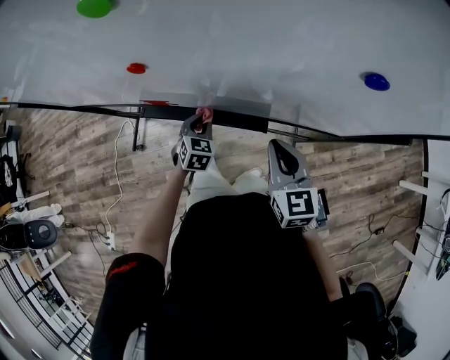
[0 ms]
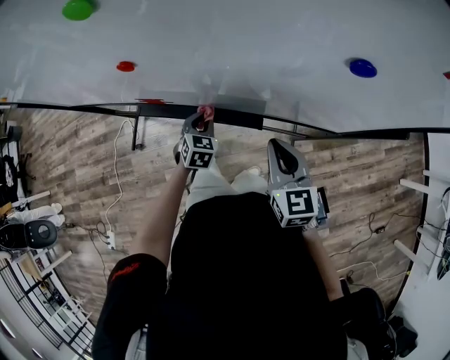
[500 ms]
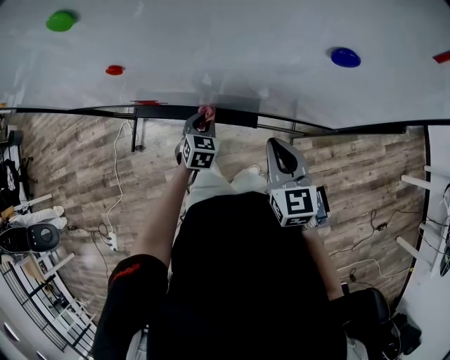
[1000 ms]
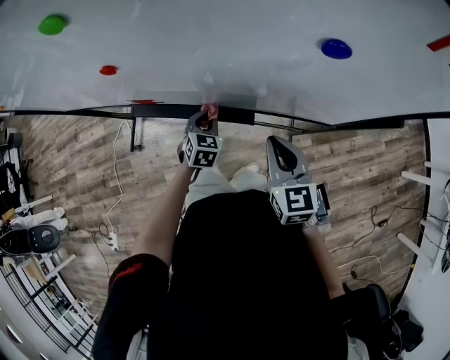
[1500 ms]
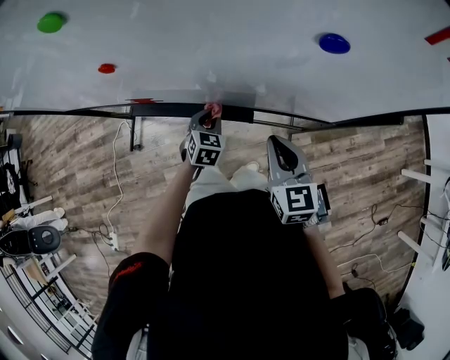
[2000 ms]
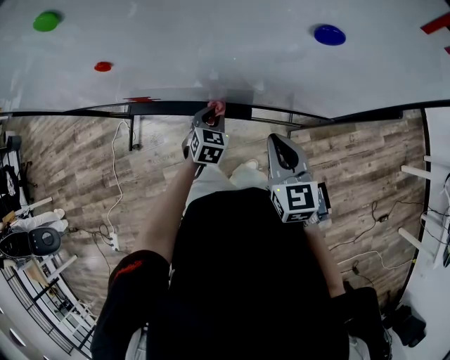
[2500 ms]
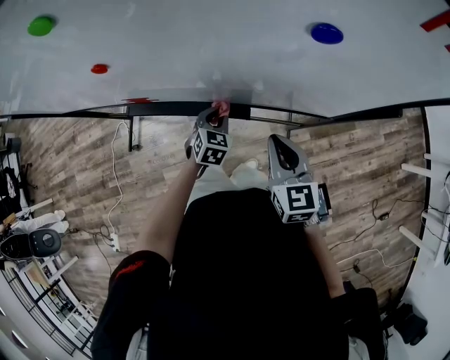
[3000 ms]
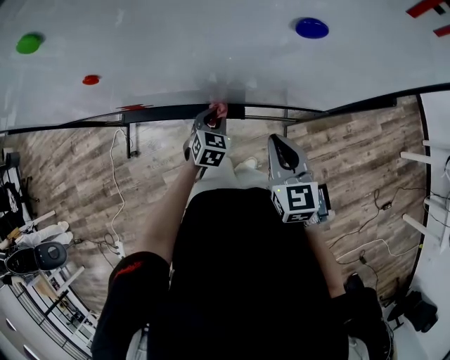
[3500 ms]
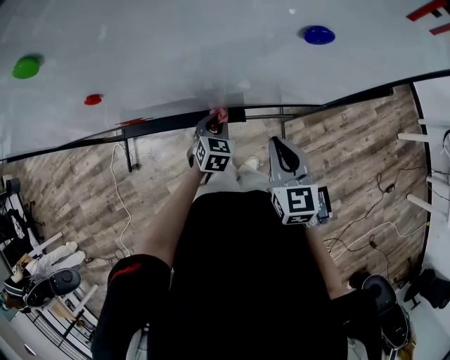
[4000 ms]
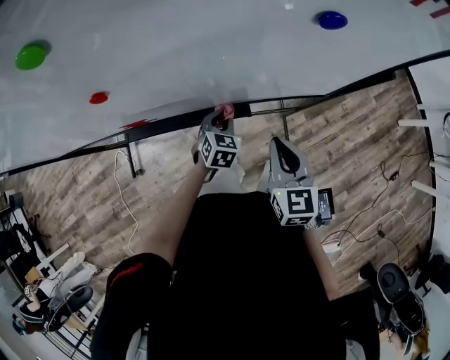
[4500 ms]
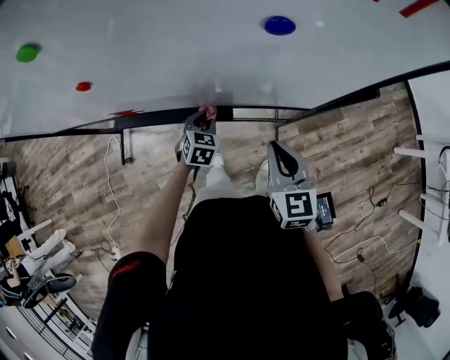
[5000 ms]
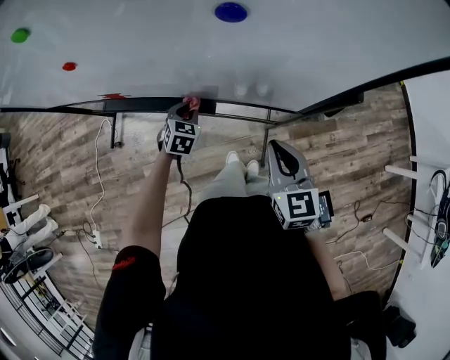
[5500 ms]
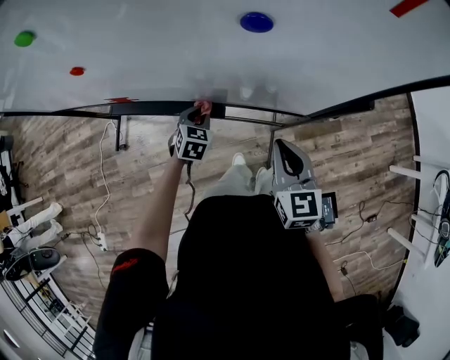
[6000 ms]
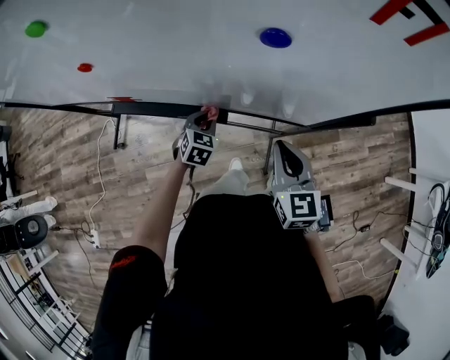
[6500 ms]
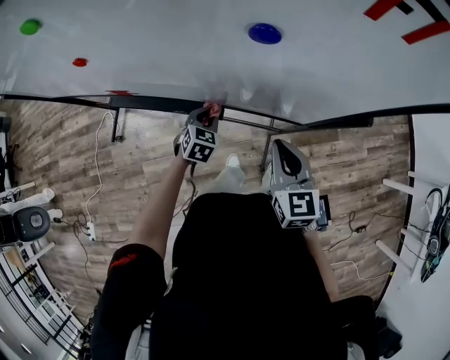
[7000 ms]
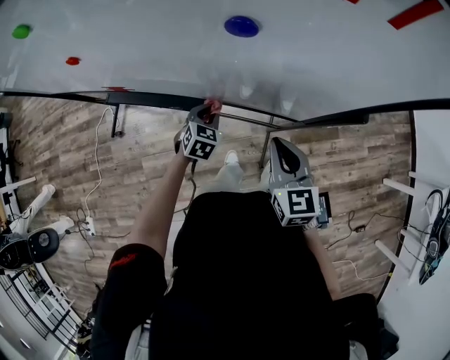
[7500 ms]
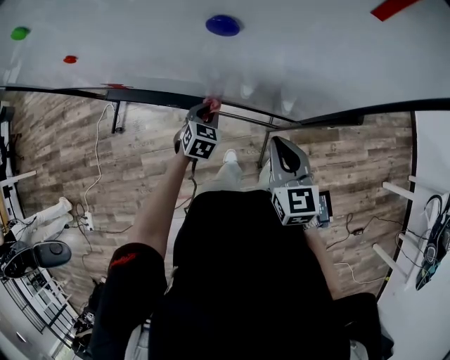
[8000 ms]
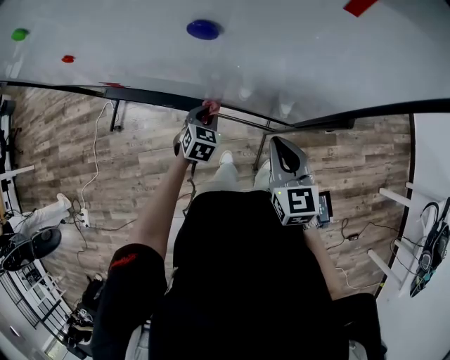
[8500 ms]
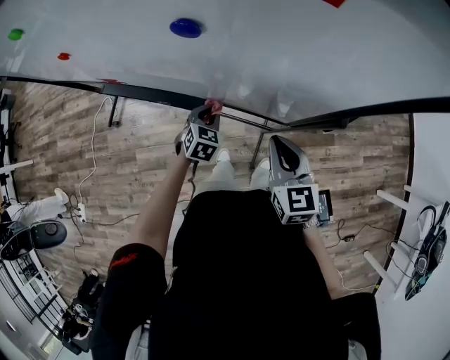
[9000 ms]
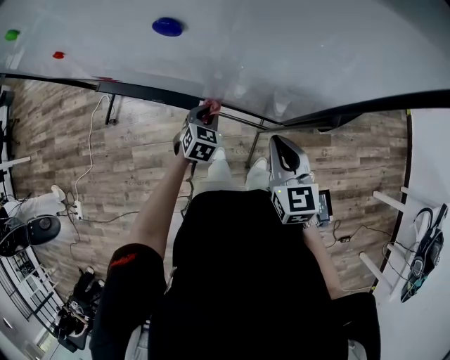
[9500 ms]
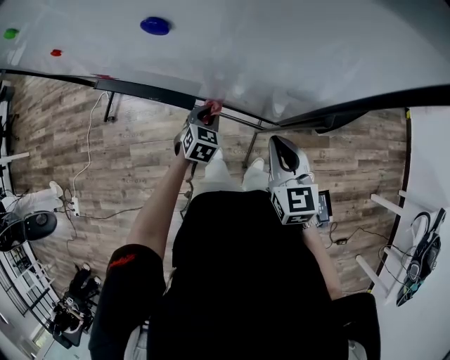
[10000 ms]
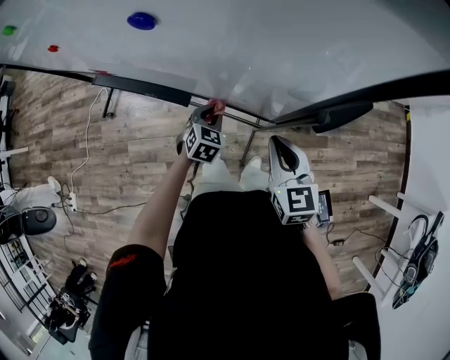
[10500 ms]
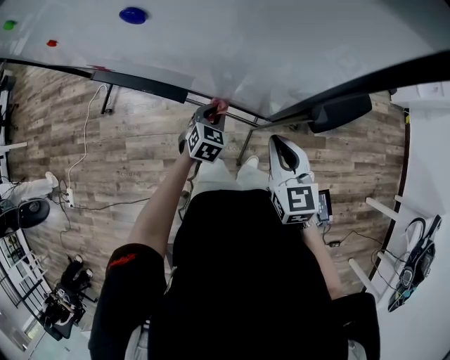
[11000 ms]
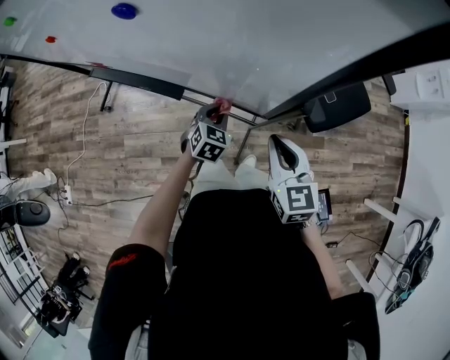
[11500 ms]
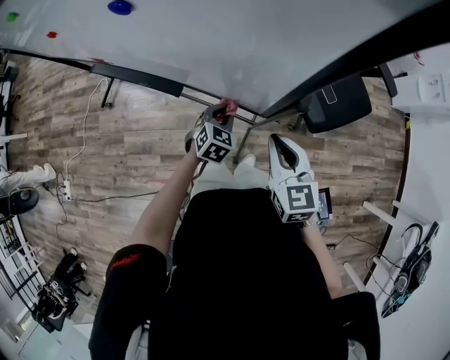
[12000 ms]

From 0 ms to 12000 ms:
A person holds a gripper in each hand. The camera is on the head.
From 0 ms to 2000 ms: The left gripper moves to the right, some 10 cm. Meanwhile the right gripper changes place by some 5 cm.
From 2000 ms to 4000 ms: There are only small adjustments of the grippers.
From 4000 ms to 6000 ms: The right gripper moves to the right, roughly 10 cm.
From 6000 ms to 8000 ms: The left gripper moves to the right, approximately 5 cm.
From 8000 ms to 10000 ms: The grippers both shift to the right by some 10 cm.
From 10000 ms to 12000 ms: The left gripper moves to the right, some 10 cm. Meanwhile the right gripper shifts roughly 5 cm to the right.

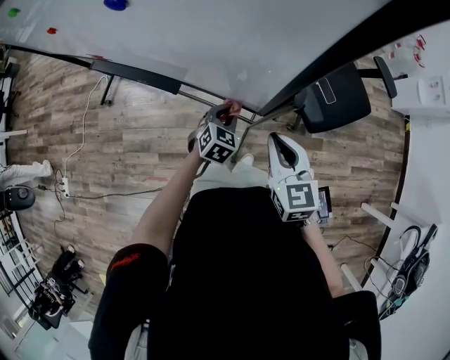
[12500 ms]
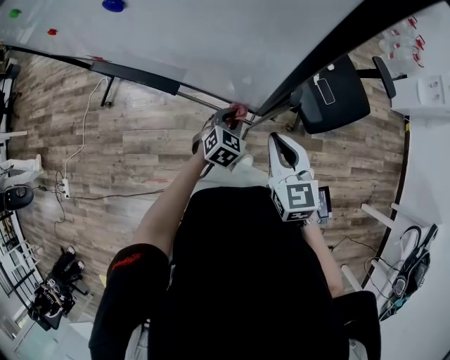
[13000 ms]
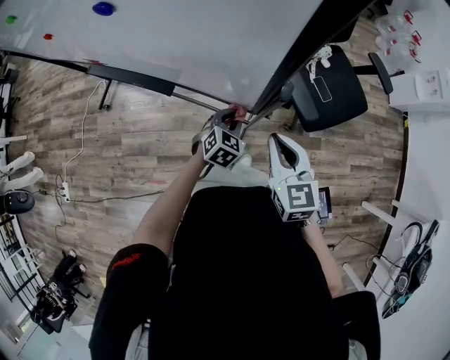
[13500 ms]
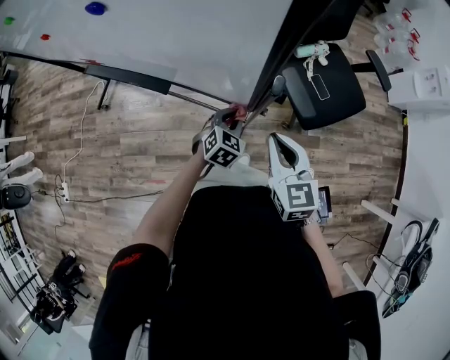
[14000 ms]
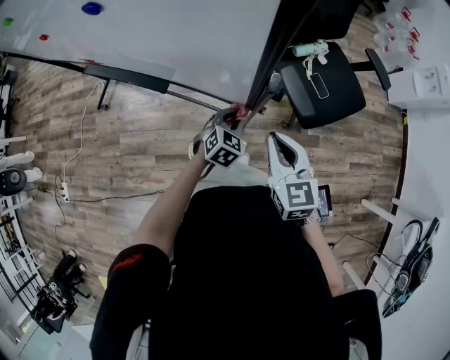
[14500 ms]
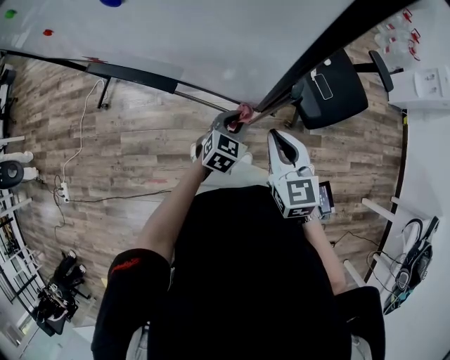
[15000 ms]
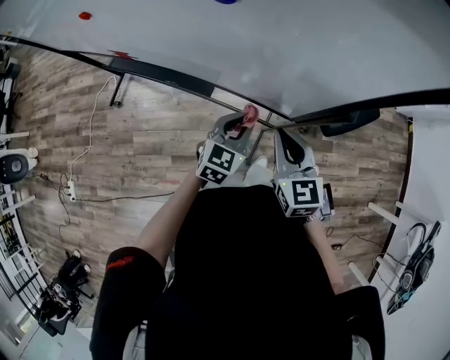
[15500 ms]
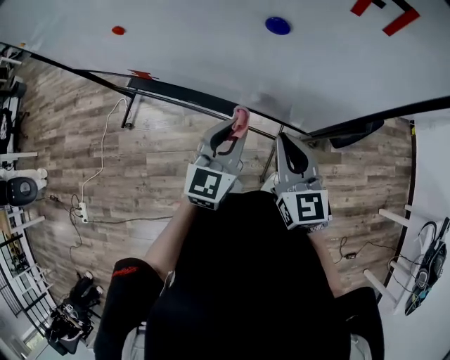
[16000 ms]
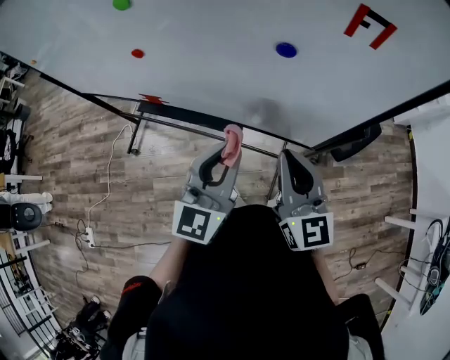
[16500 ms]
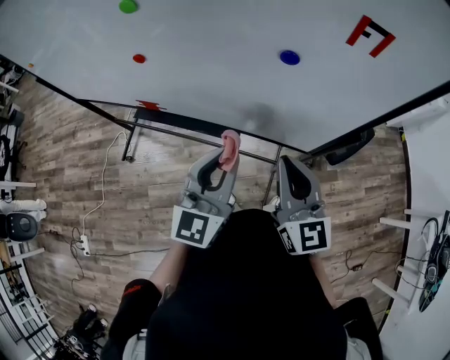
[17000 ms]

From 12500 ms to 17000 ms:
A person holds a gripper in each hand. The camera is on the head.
From 12500 ms to 14500 ms: The left gripper travels to the right by some 5 cm.
From 14500 ms to 17000 ms: The right gripper shifts about 30 cm to the left and upward, and swivels about 20 degrees; the left gripper shifts roughly 40 cm upward and to the left, and tilts its fingers some 50 degrees upward.

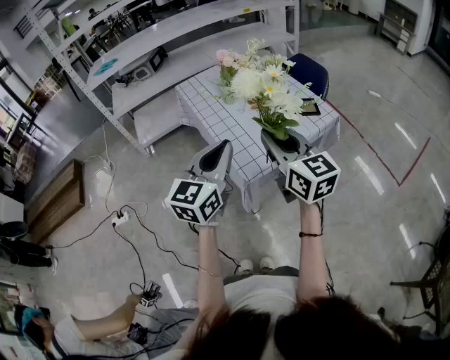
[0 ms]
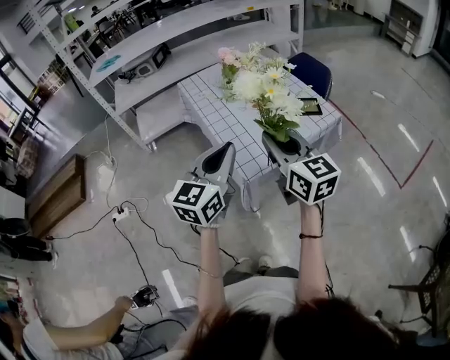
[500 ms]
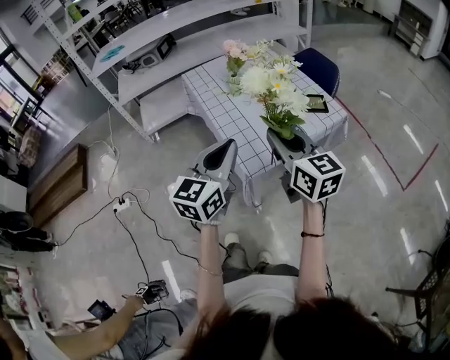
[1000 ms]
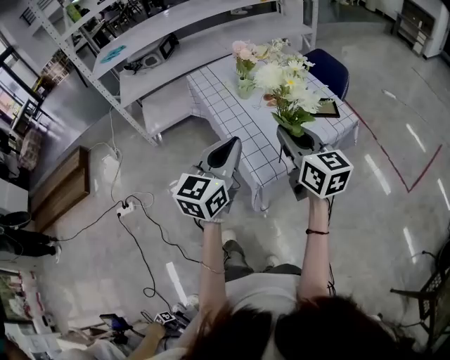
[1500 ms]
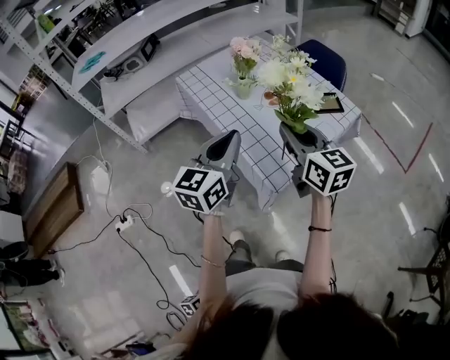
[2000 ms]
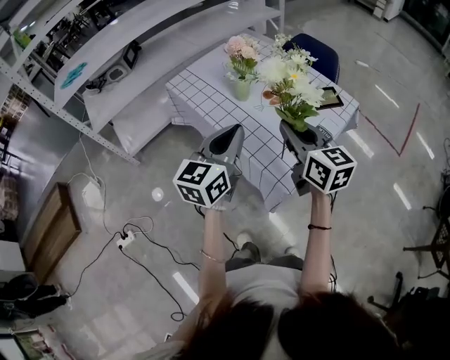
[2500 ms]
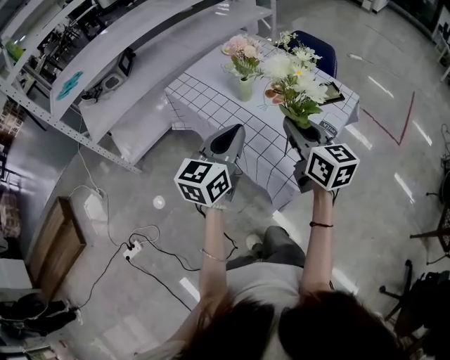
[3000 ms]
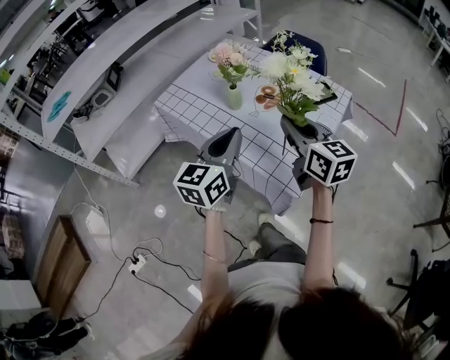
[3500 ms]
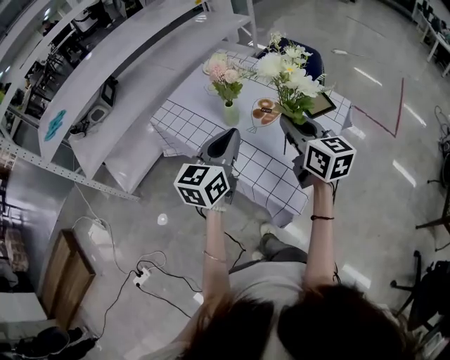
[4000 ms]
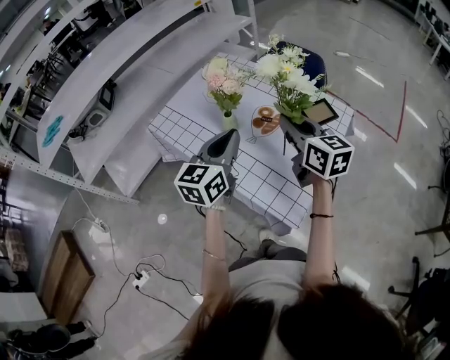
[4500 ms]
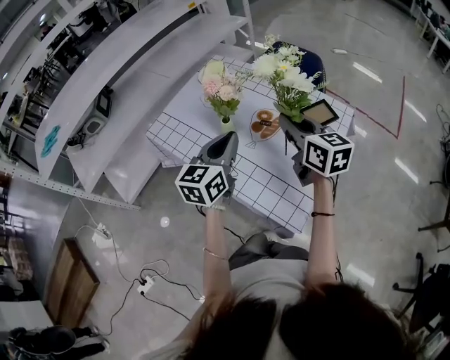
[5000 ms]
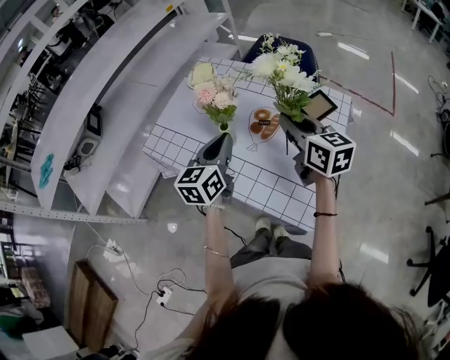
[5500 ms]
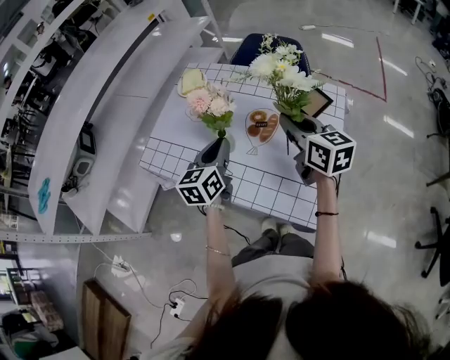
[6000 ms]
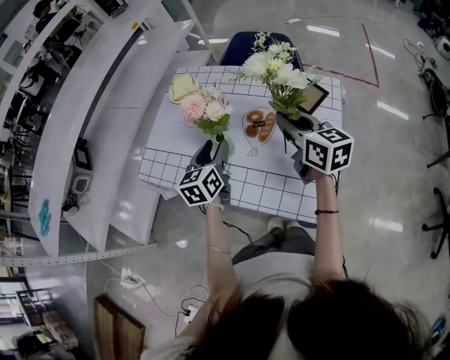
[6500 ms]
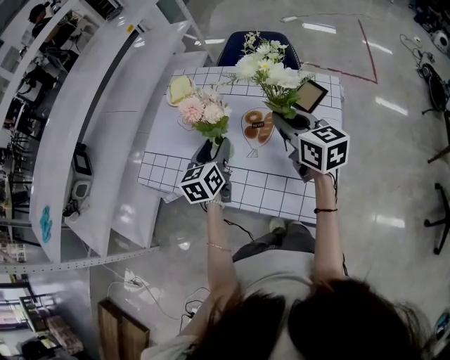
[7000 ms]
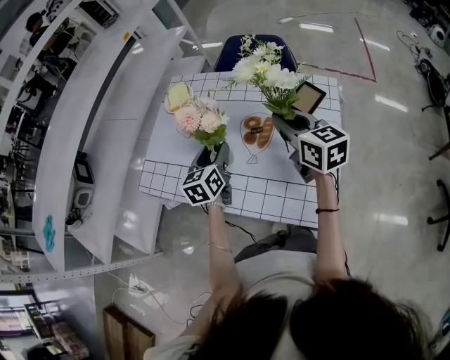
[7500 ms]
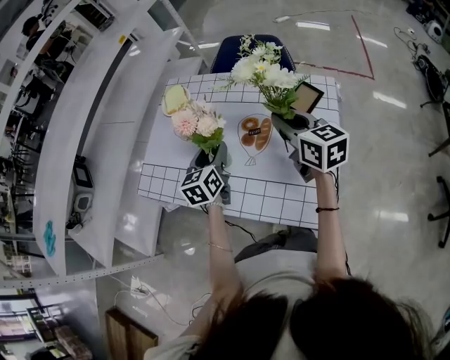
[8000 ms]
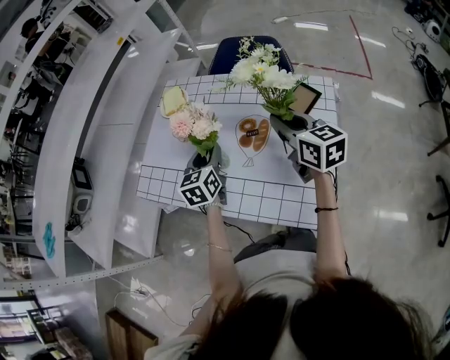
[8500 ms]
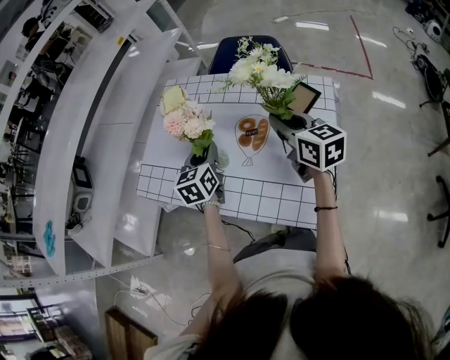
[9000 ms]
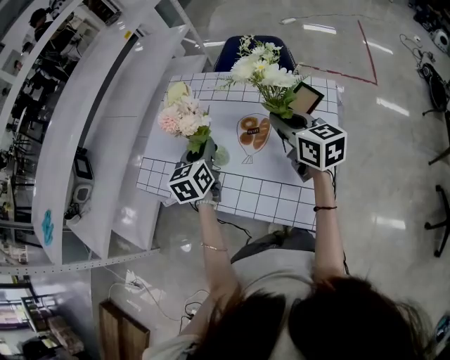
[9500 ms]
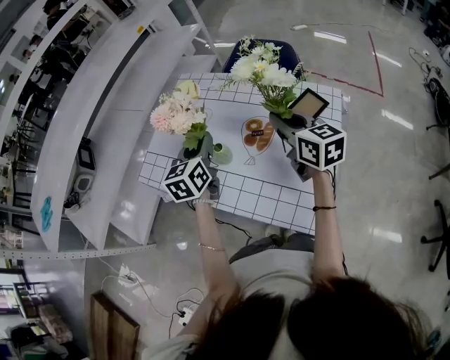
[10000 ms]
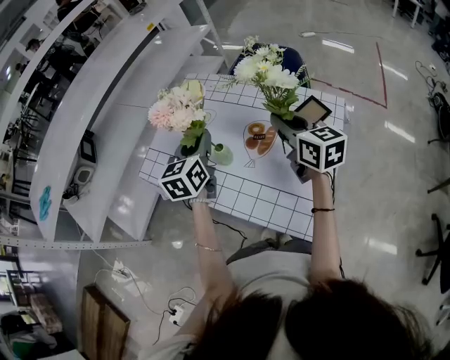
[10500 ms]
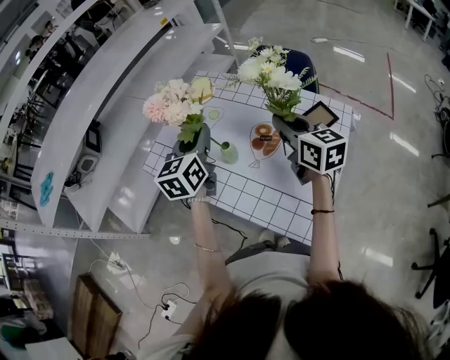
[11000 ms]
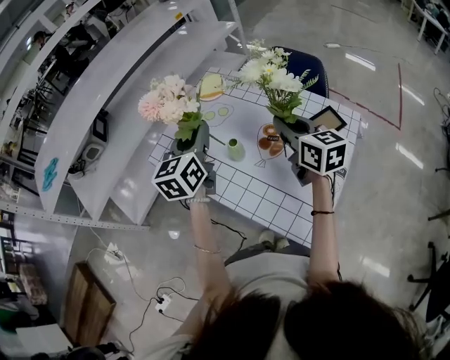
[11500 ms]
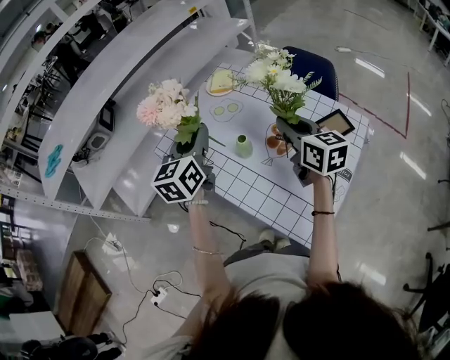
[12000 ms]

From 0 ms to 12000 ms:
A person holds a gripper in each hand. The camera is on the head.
From 0 ms to 2000 ms: The right gripper moves forward and downward, approximately 10 cm, while the left gripper goes some 15 cm forward and to the left.
From 2000 ms to 4000 ms: Both grippers travel together forward, approximately 15 cm.
From 4000 ms to 6000 ms: The left gripper goes some 20 cm forward and downward, while the right gripper goes some 10 cm forward.
From 6000 ms to 8000 ms: The left gripper travels forward and downward by some 10 cm, and opens up.
From 8000 ms to 10000 ms: The left gripper goes about 10 cm upward, and closes up.
From 10000 ms to 12000 ms: The left gripper heads to the left and upward, covering some 10 cm, while the right gripper travels to the left by roughly 5 cm.
